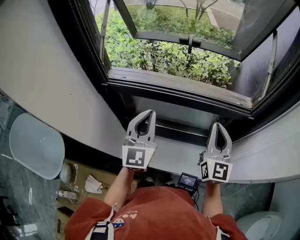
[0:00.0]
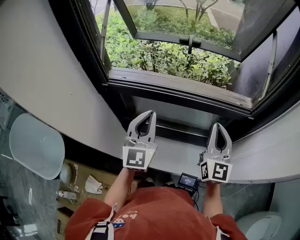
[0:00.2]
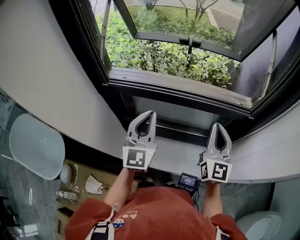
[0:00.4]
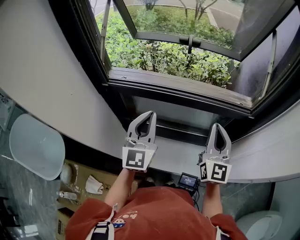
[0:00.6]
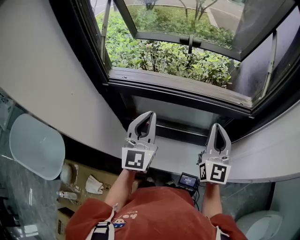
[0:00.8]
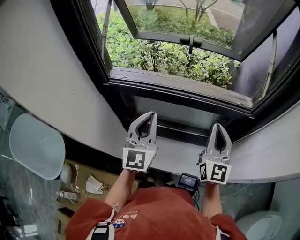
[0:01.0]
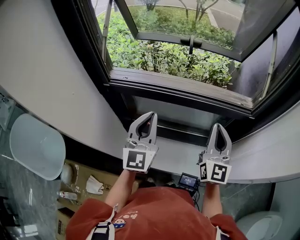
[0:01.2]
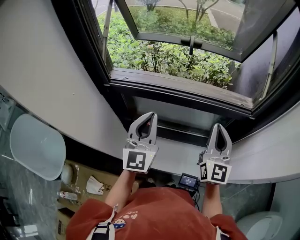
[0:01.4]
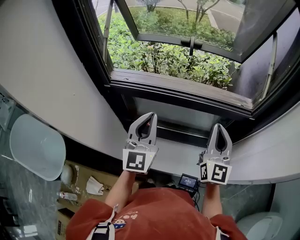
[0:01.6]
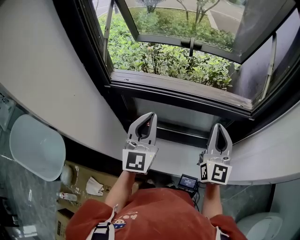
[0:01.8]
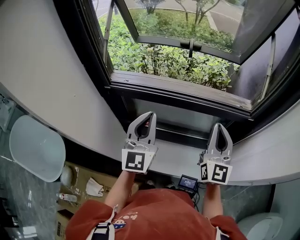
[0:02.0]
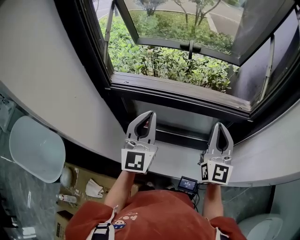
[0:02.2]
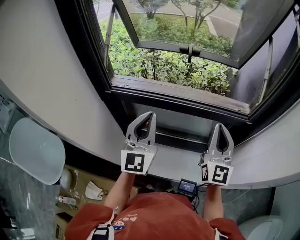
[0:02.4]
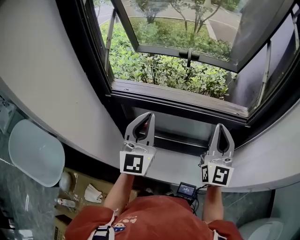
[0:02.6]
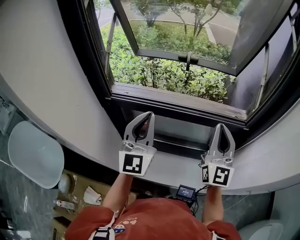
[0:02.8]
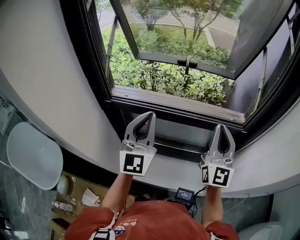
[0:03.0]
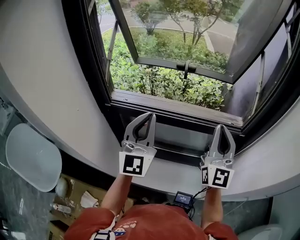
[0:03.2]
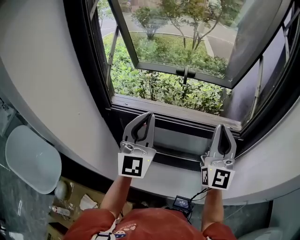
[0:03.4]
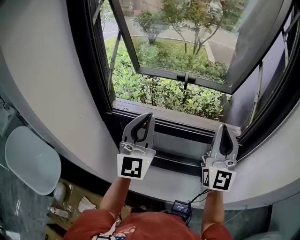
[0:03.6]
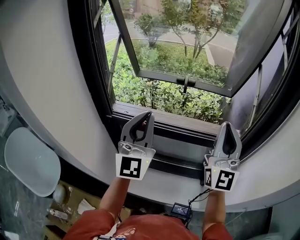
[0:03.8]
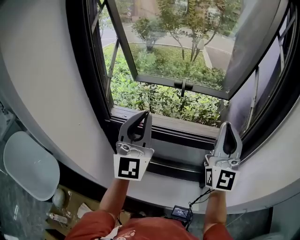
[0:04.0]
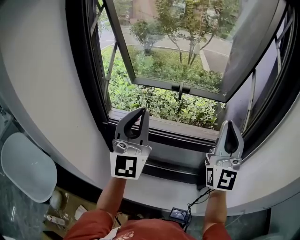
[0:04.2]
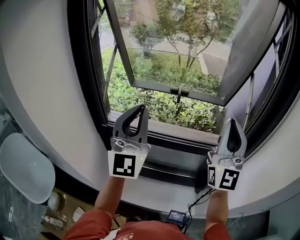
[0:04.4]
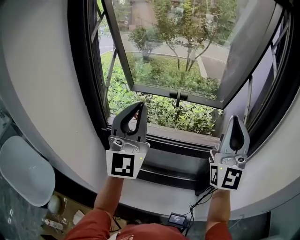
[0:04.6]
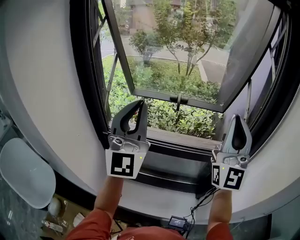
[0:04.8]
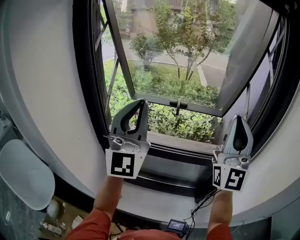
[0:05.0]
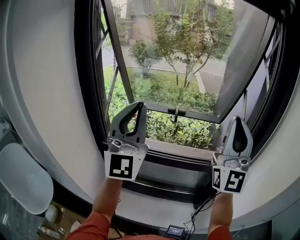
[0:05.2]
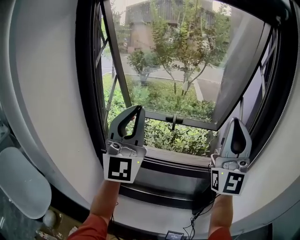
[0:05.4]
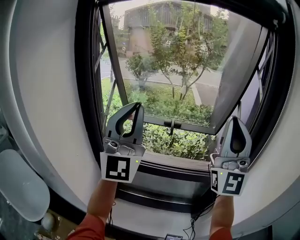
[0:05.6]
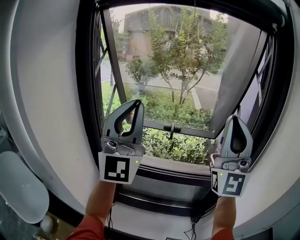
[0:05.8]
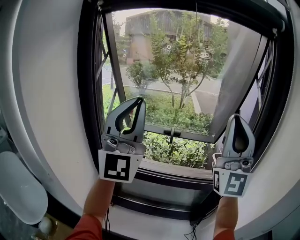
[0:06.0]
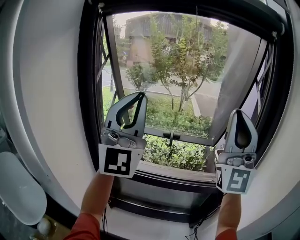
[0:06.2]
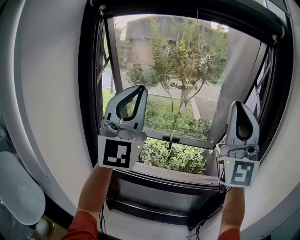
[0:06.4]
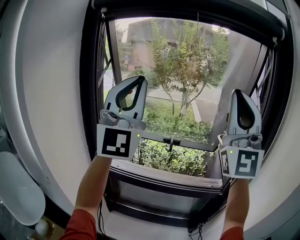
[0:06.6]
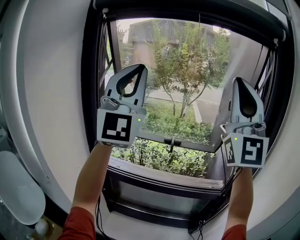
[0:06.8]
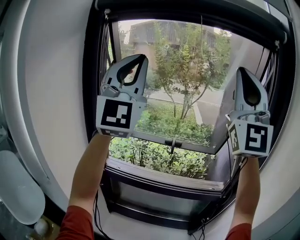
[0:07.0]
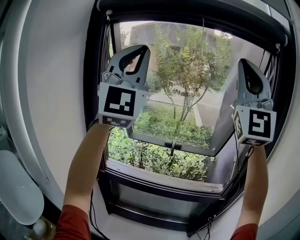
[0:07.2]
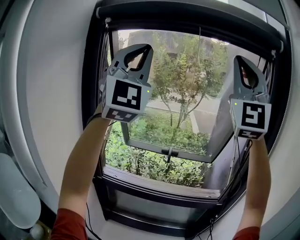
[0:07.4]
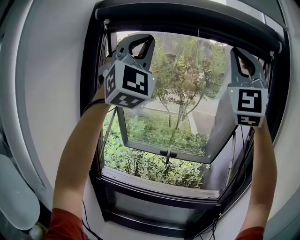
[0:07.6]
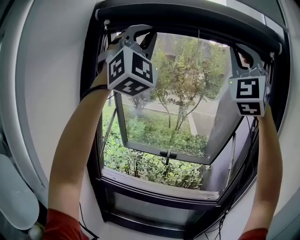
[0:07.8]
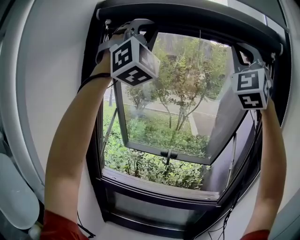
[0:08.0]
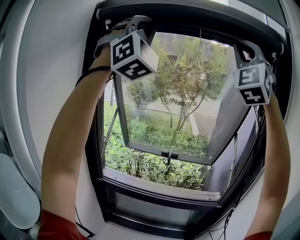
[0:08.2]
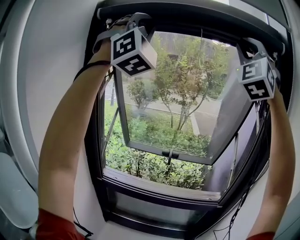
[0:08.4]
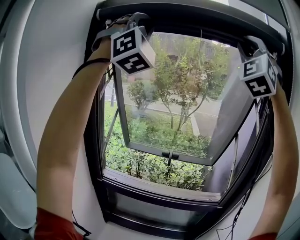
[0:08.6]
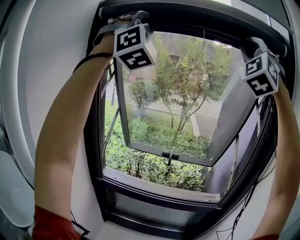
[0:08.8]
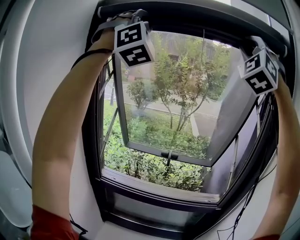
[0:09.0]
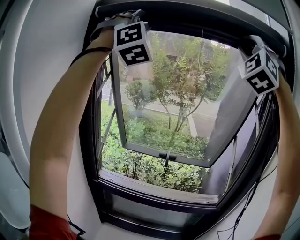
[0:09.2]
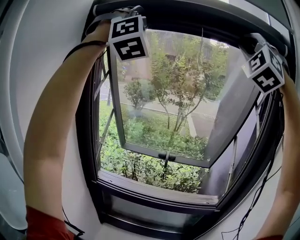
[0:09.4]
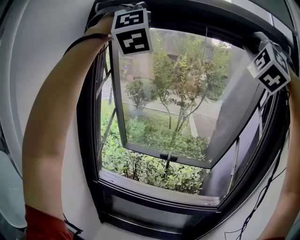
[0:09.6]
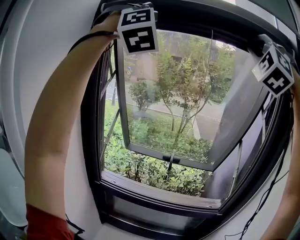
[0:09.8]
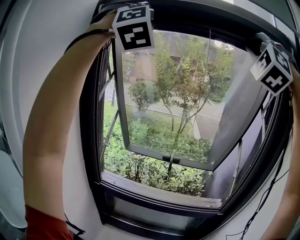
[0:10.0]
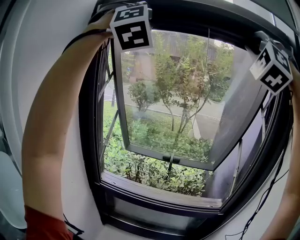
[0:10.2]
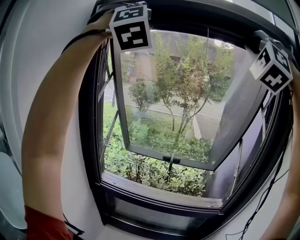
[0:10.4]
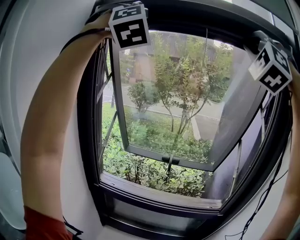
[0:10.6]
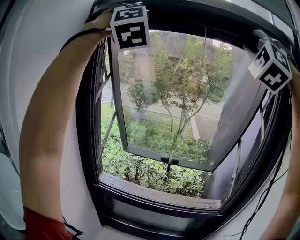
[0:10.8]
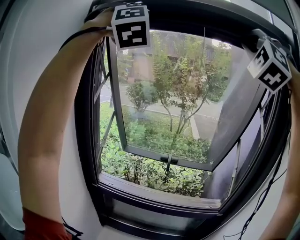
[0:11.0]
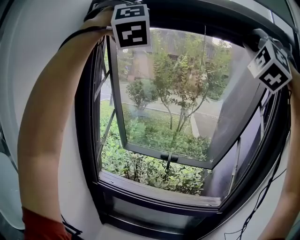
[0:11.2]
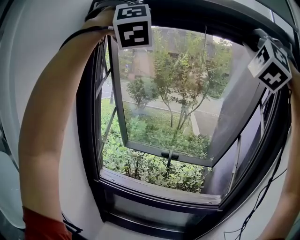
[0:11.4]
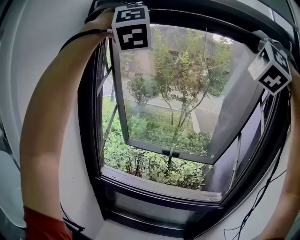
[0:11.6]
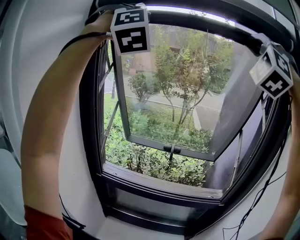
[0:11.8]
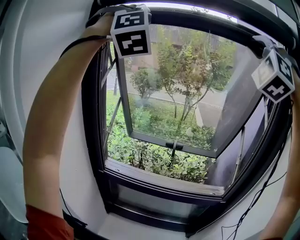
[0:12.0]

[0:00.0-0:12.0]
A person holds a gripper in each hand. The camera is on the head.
0:00.0 to 0:01.6: Neither gripper changes place.
0:01.6 to 0:03.0: The two grippers go roughly 10 cm upward.
0:03.0 to 0:04.4: Both grippers travel together upward, about 15 cm.
0:04.4 to 0:06.0: The grippers both shift upward by roughly 15 cm.
0:06.0 to 0:07.6: The grippers both shift upward by some 25 cm. The left gripper swivels approximately 30 degrees, while the right gripper rotates approximately 30 degrees.
0:07.6 to 0:09.0: The right gripper heads forward and upward, covering approximately 10 cm, and changes its angle by roughly 40 degrees. Meanwhile the left gripper is displaced upward and forward by approximately 10 cm, and rotates roughly 40 degrees.
0:09.0 to 0:10.4: The grippers stay close to where they were, moving slightly.
0:10.4 to 0:12.0: The right gripper moves downward, some 5 cm.

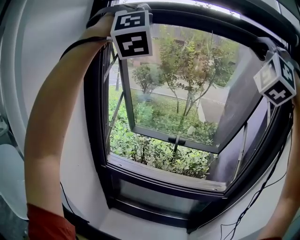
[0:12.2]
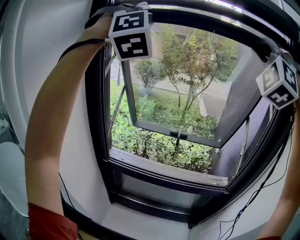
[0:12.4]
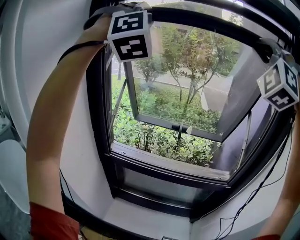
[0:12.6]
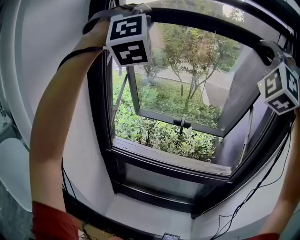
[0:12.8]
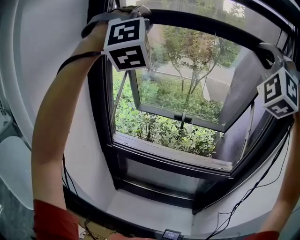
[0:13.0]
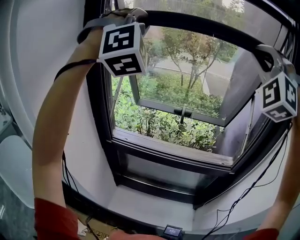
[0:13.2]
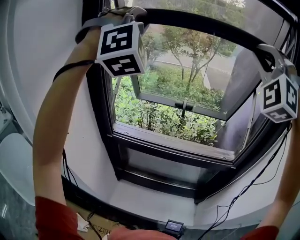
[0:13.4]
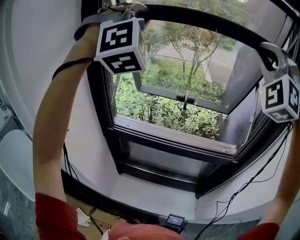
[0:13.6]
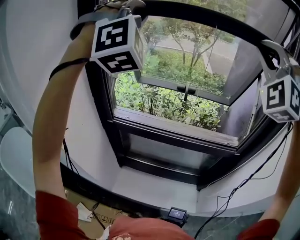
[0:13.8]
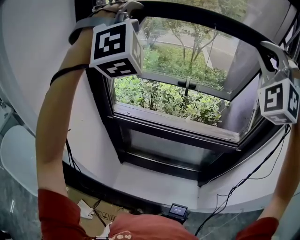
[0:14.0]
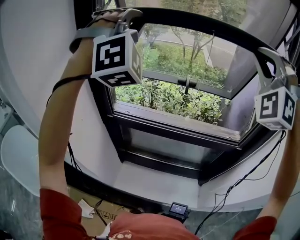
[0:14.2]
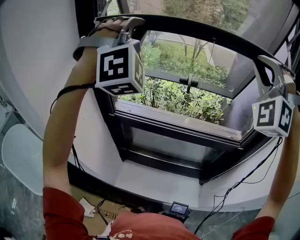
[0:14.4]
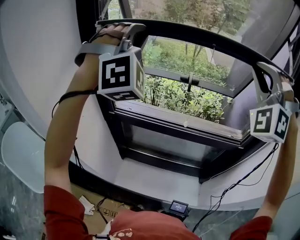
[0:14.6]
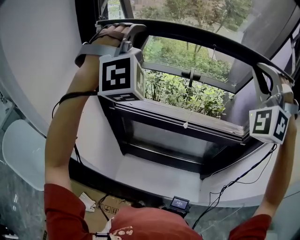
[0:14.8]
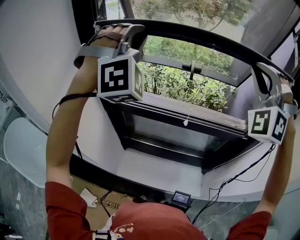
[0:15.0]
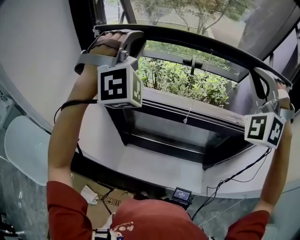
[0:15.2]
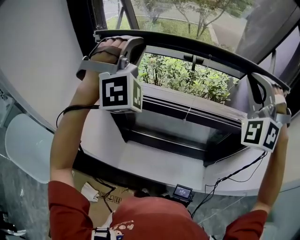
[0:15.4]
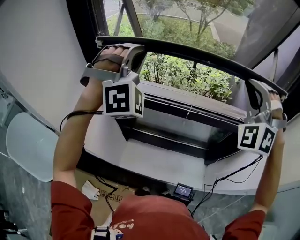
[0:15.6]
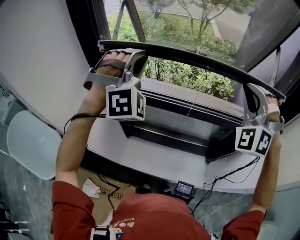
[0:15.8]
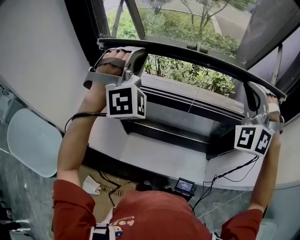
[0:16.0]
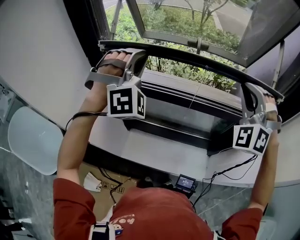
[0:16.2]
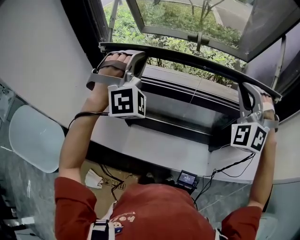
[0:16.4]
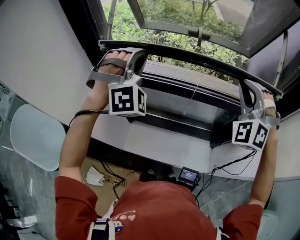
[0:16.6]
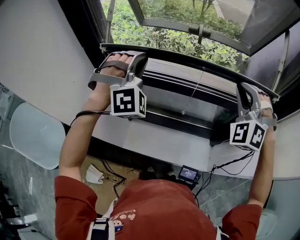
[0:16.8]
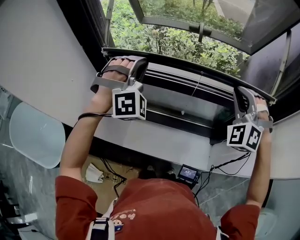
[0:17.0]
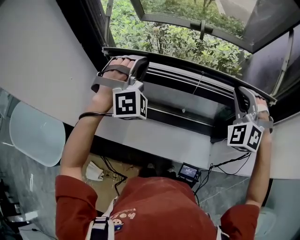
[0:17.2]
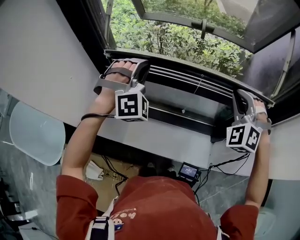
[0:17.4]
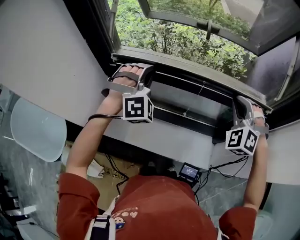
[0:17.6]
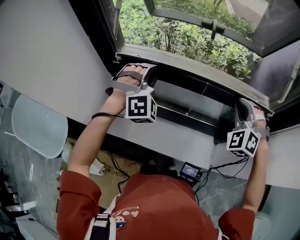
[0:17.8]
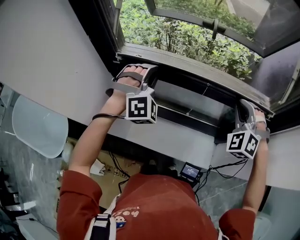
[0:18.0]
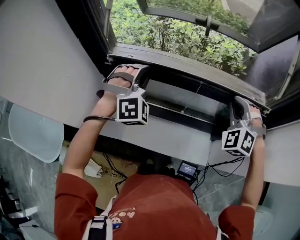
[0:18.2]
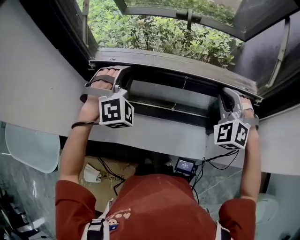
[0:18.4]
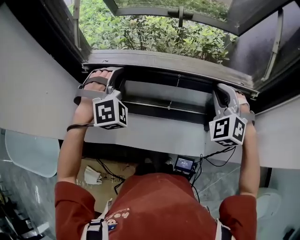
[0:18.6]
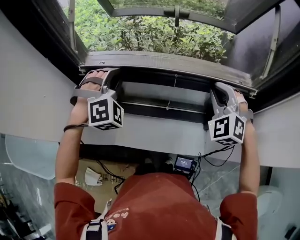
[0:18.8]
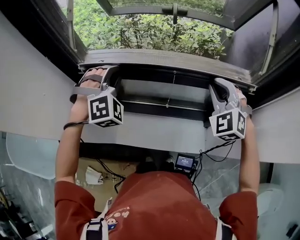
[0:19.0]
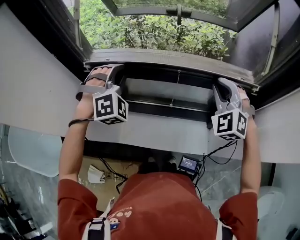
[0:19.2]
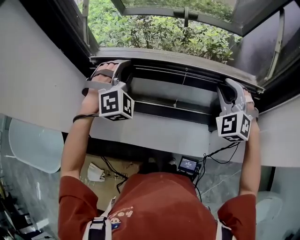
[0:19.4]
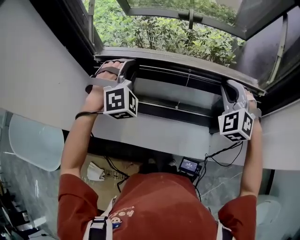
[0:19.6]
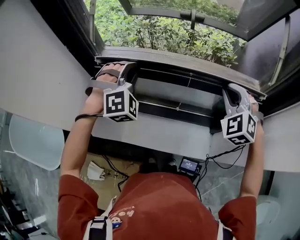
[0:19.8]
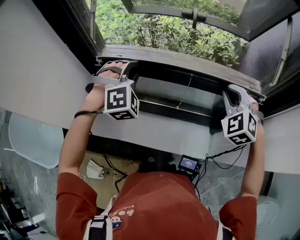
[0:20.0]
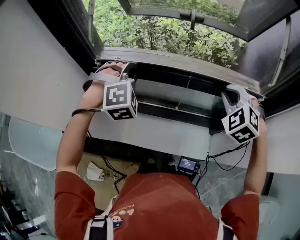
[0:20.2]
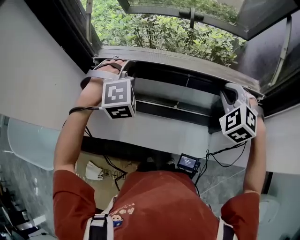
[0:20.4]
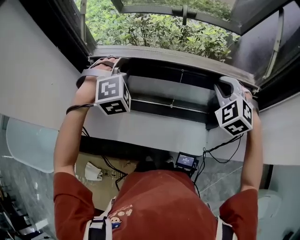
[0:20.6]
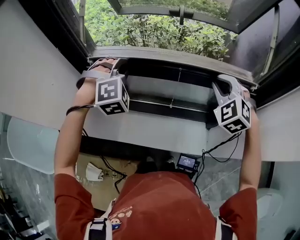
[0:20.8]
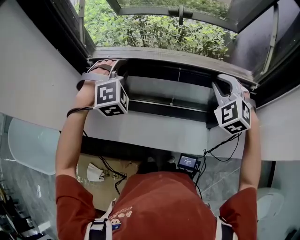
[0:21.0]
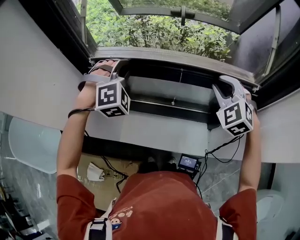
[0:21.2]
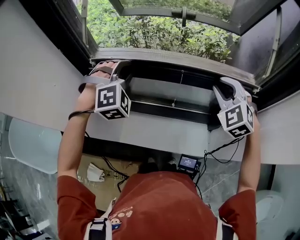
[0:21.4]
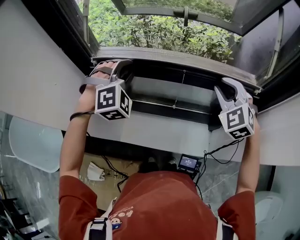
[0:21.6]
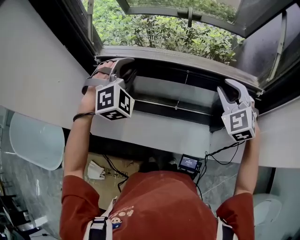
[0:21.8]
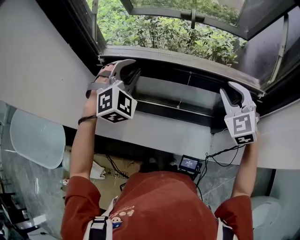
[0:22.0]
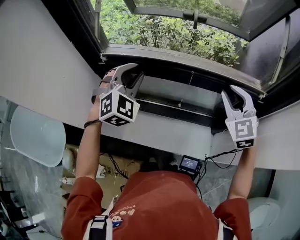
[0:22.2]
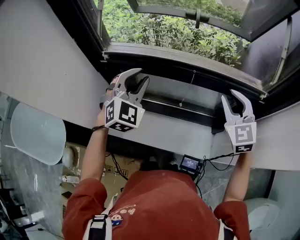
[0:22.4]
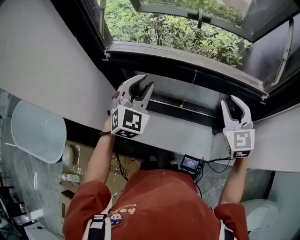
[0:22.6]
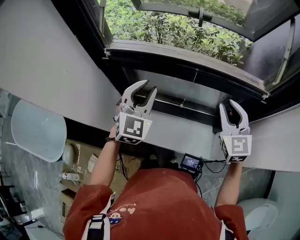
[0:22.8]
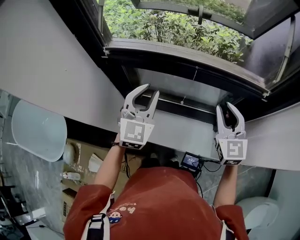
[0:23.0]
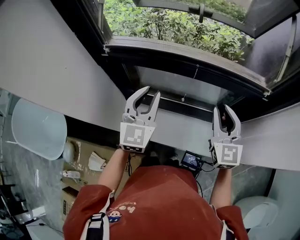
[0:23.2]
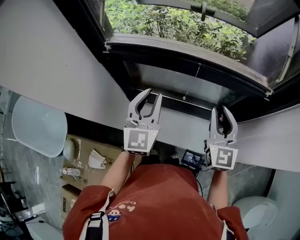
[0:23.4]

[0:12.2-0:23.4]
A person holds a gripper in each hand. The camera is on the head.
0:12.2 to 0:13.8: Both grippers travel together downward, about 20 cm.
0:13.8 to 0:15.4: Both grippers move downward, approximately 20 cm.
0:15.4 to 0:17.0: The two grippers go roughly 20 cm downward.
0:17.0 to 0:18.6: The two grippers go some 5 cm downward.
0:18.6 to 0:20.2: The grippers move only a little.
0:20.2 to 0:21.8: The left gripper opens its fingers.
0:21.8 to 0:23.4: Both grippers move backward, about 10 cm. The right gripper changes its angle by some 40 degrees. Meanwhile the left gripper rotates around the line of its fingers by about 60 degrees, counterclockwise from behind.

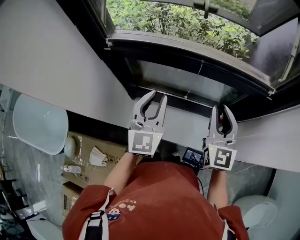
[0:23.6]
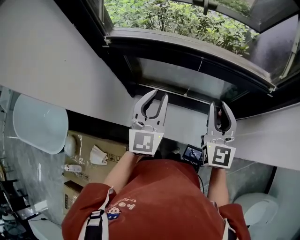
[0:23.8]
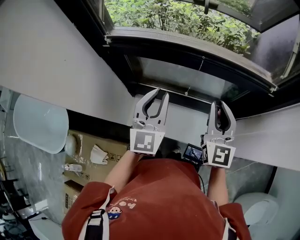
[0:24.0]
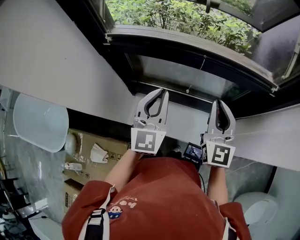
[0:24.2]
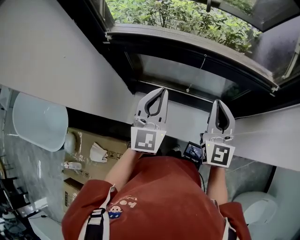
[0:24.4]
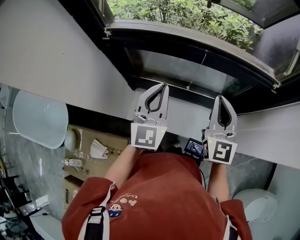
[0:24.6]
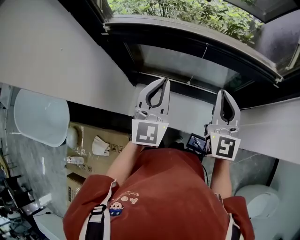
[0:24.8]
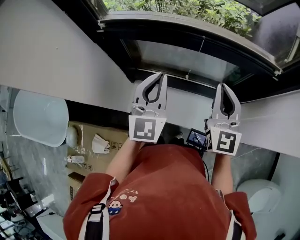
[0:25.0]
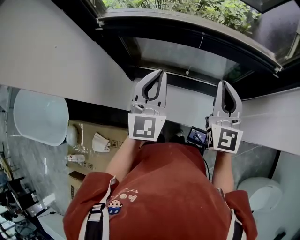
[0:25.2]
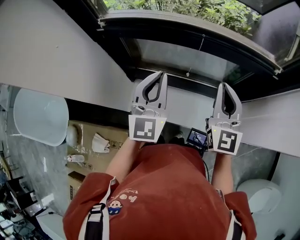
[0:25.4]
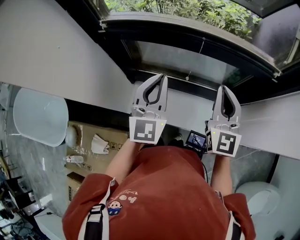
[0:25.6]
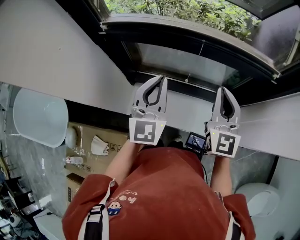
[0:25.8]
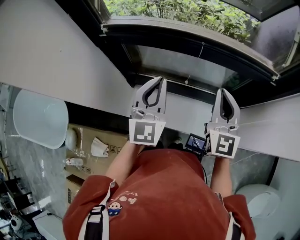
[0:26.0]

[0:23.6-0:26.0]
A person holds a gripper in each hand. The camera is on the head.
0:23.6 to 0:24.8: The right gripper closes up, while the left gripper closes up.
0:24.8 to 0:26.0: Both grippers stay put.
